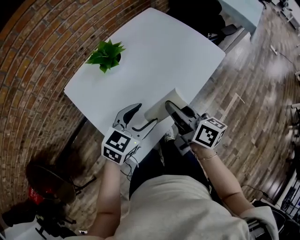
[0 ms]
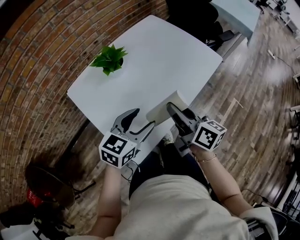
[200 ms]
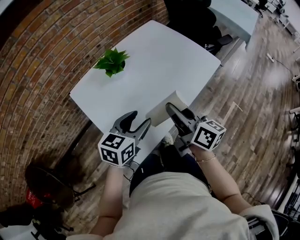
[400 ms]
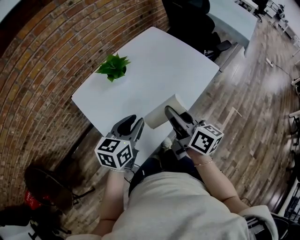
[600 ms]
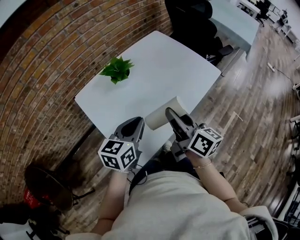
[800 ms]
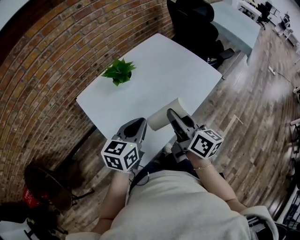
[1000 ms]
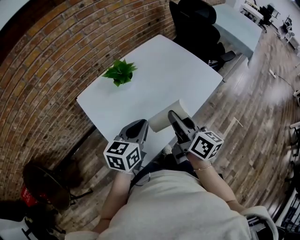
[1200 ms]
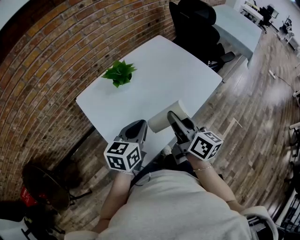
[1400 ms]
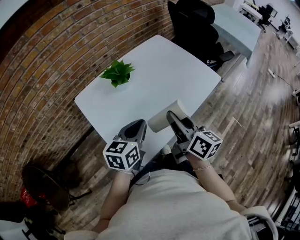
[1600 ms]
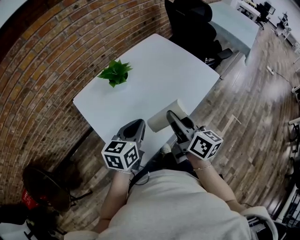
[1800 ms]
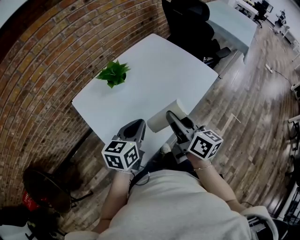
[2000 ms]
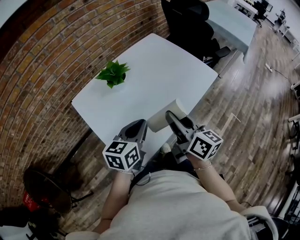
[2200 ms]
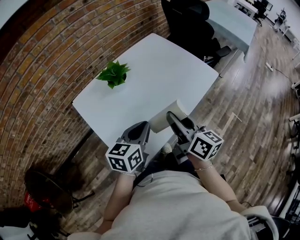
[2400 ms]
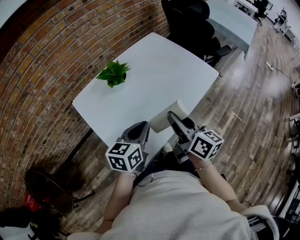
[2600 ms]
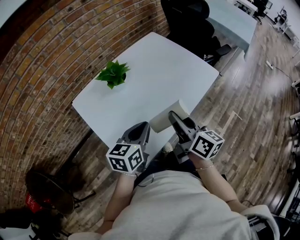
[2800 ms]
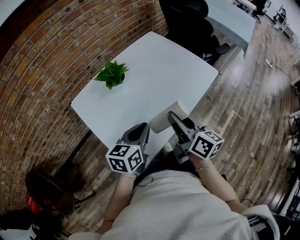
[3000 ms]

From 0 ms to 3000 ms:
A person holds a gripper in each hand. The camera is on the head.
From 0 ms to 1600 ms: The right gripper shifts about 5 cm upward. Meanwhile the left gripper moves some 5 cm, turns by approximately 30 degrees, and closes.
From 1600 ms to 3000 ms: The grippers move only a little.

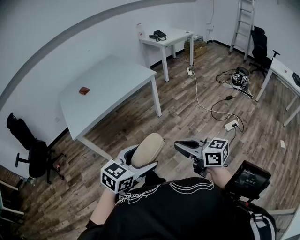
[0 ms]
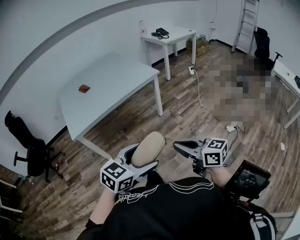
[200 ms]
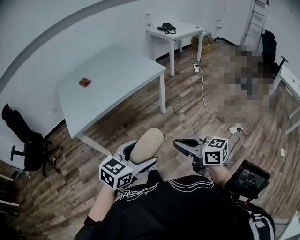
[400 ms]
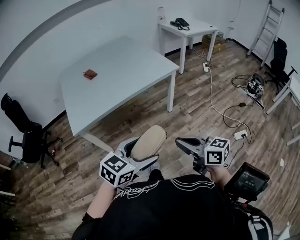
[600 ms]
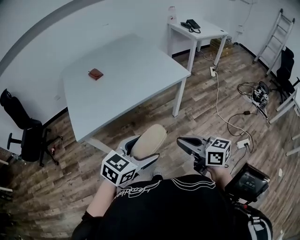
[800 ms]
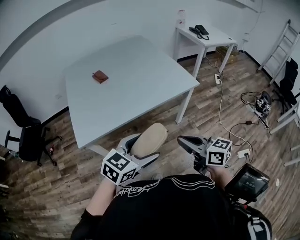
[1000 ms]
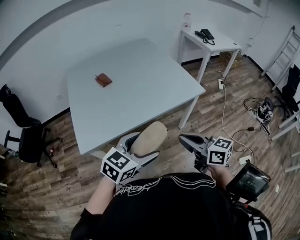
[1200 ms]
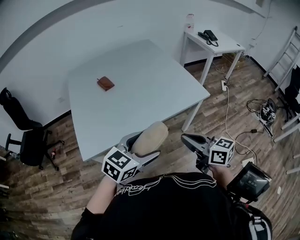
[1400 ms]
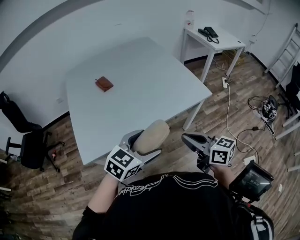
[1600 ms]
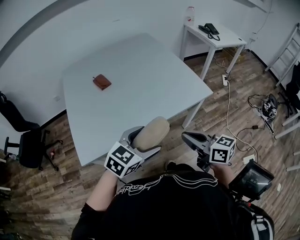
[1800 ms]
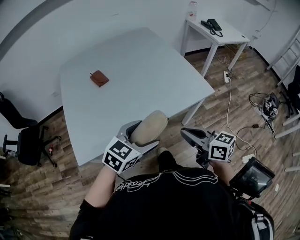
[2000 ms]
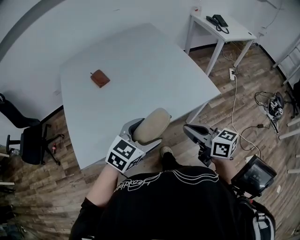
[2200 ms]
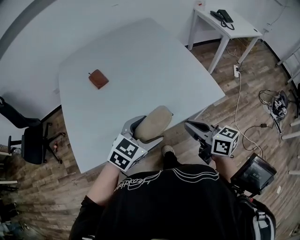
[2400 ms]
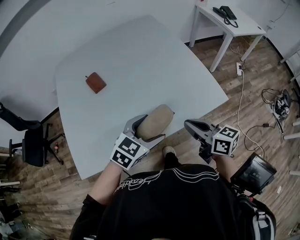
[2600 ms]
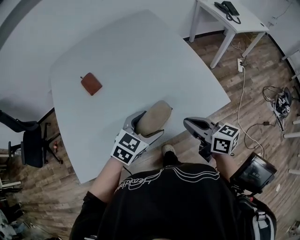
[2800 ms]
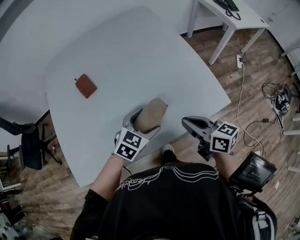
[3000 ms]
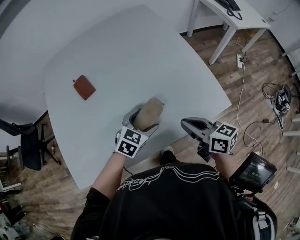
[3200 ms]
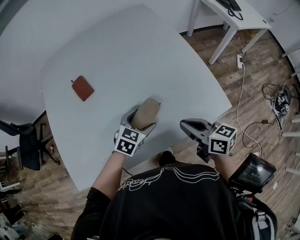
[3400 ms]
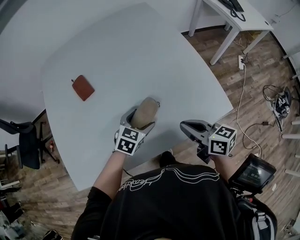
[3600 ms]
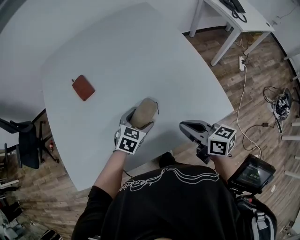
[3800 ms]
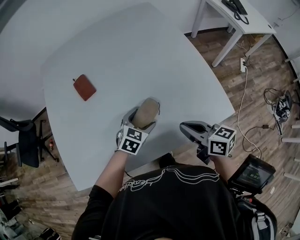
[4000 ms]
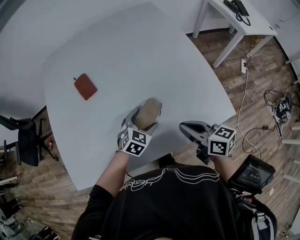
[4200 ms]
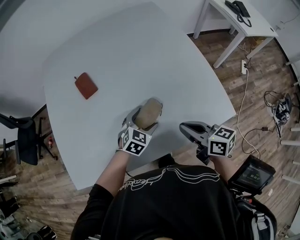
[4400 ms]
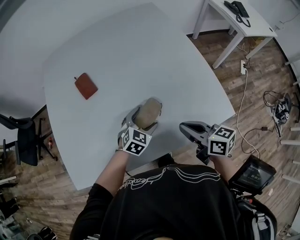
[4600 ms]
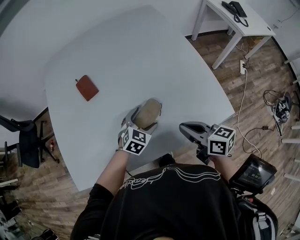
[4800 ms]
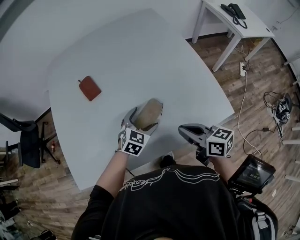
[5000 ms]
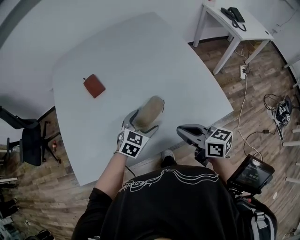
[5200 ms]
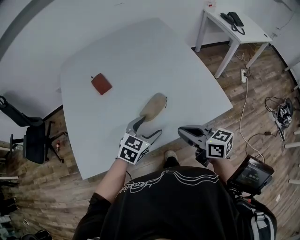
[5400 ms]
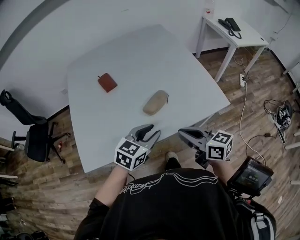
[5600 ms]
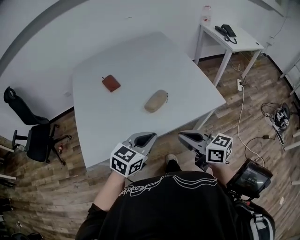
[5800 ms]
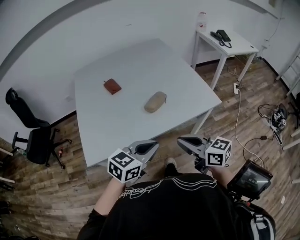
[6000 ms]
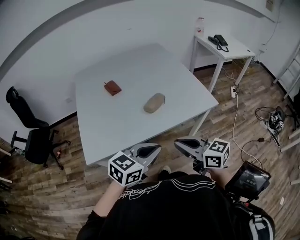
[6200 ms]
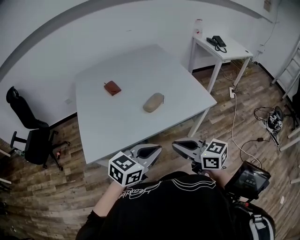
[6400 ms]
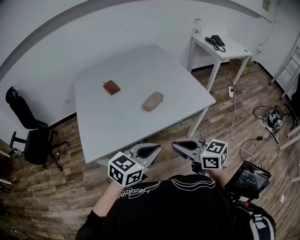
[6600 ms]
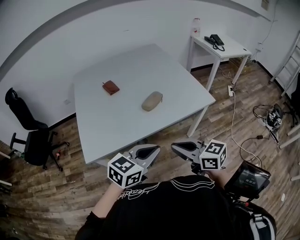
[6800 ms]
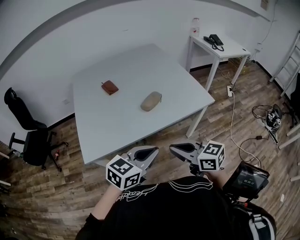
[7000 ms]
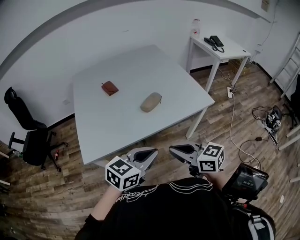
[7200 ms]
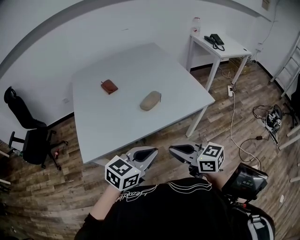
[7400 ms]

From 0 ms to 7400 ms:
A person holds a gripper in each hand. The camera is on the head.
From 0 ms to 1400 ms: The pair of grippers is taken forward and to the left, approximately 50 cm.
From 1400 ms to 3000 ms: The left gripper shifts approximately 35 cm forward and downward. The right gripper shifts roughly 30 cm forward.
From 3000 ms to 4400 ms: The left gripper shifts about 10 cm downward and forward.
From 4400 ms to 6000 ms: The right gripper shifts approximately 30 cm backward, upward and to the left, while the left gripper moves backward and upward, roughly 40 cm, rotates roughly 30 degrees, and closes its fingers.
From 6000 ms to 7400 ms: The grippers both shift backward by roughly 5 cm.

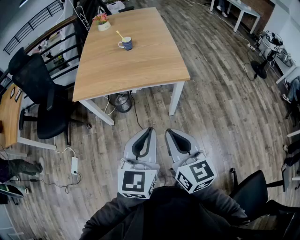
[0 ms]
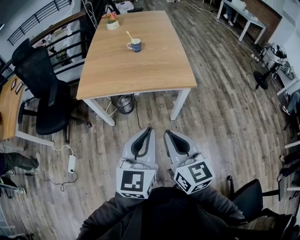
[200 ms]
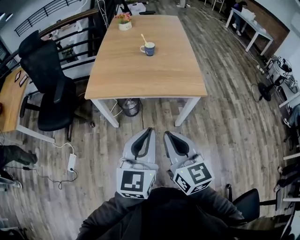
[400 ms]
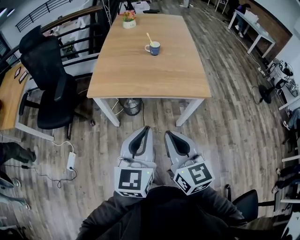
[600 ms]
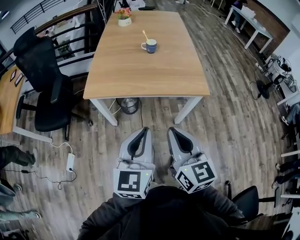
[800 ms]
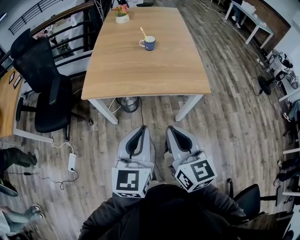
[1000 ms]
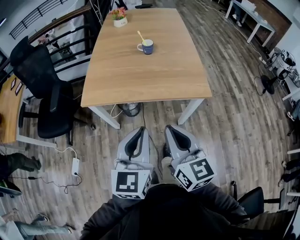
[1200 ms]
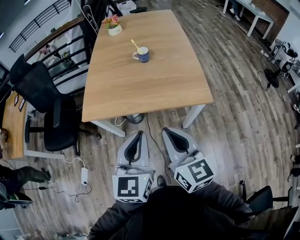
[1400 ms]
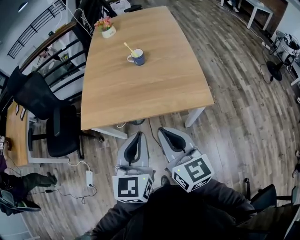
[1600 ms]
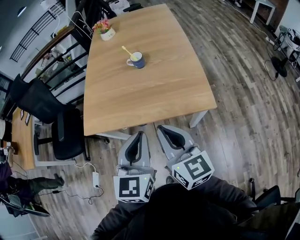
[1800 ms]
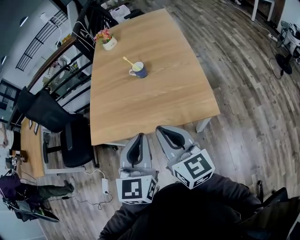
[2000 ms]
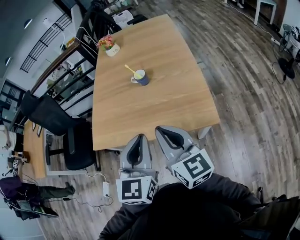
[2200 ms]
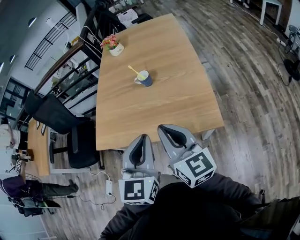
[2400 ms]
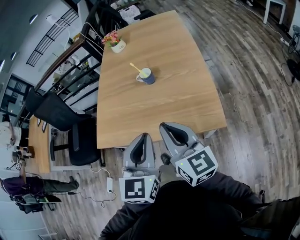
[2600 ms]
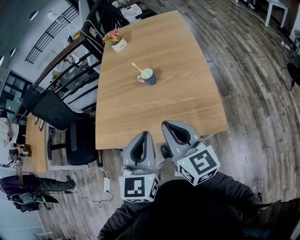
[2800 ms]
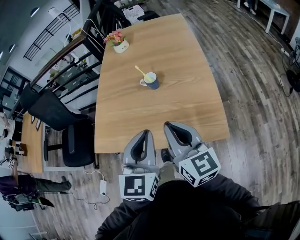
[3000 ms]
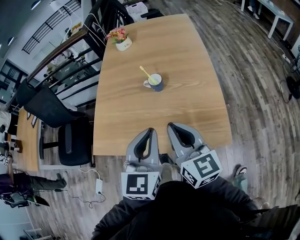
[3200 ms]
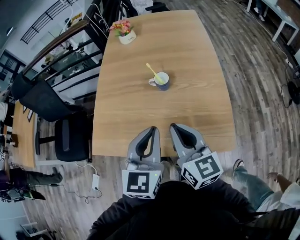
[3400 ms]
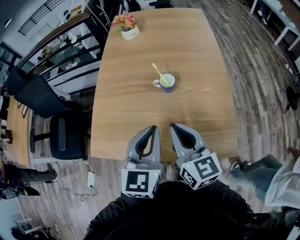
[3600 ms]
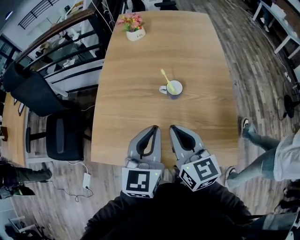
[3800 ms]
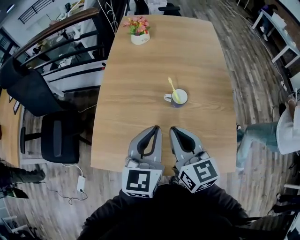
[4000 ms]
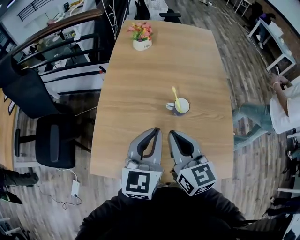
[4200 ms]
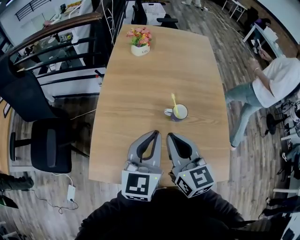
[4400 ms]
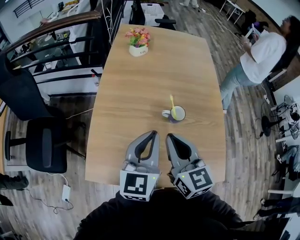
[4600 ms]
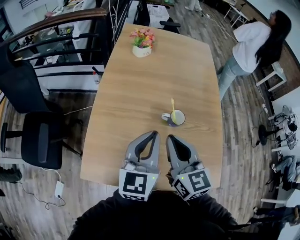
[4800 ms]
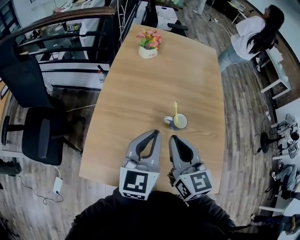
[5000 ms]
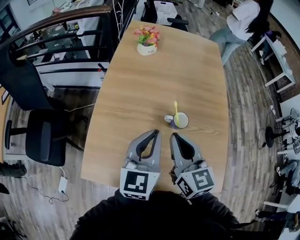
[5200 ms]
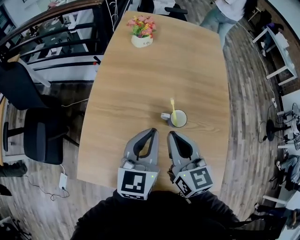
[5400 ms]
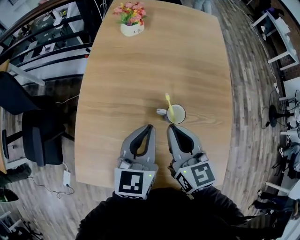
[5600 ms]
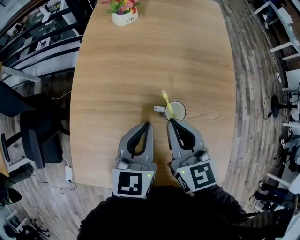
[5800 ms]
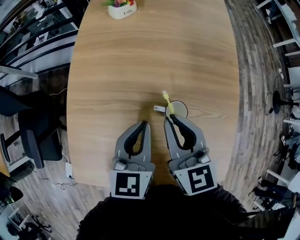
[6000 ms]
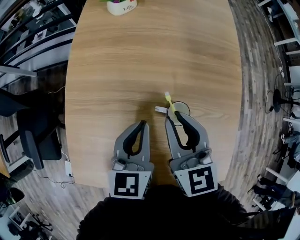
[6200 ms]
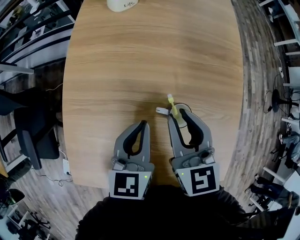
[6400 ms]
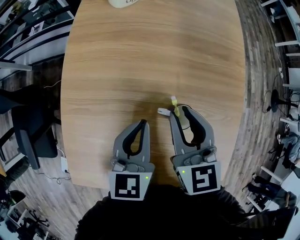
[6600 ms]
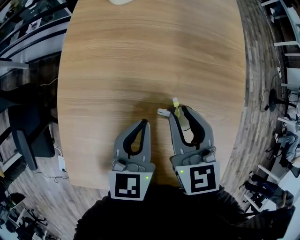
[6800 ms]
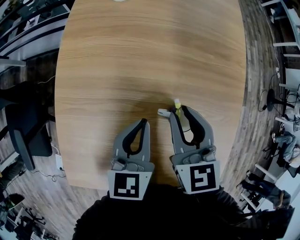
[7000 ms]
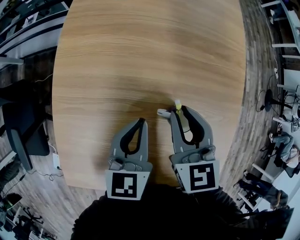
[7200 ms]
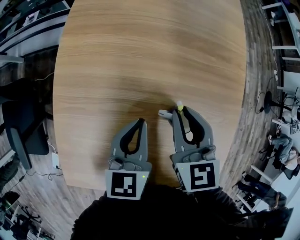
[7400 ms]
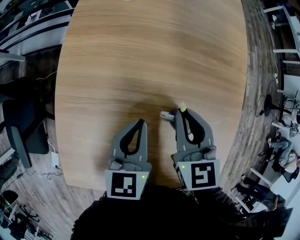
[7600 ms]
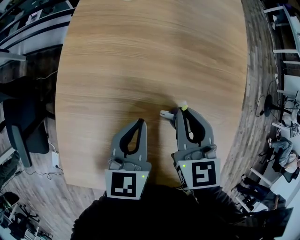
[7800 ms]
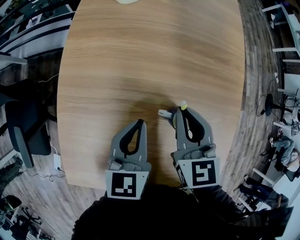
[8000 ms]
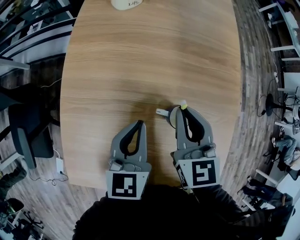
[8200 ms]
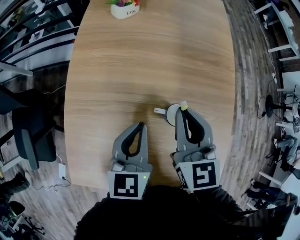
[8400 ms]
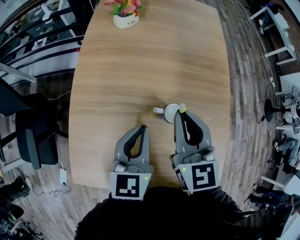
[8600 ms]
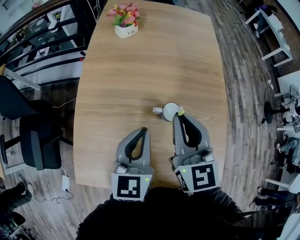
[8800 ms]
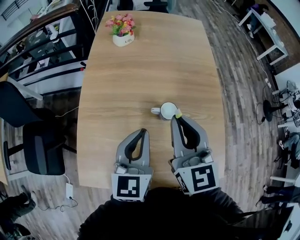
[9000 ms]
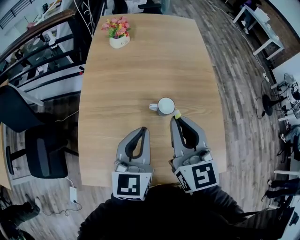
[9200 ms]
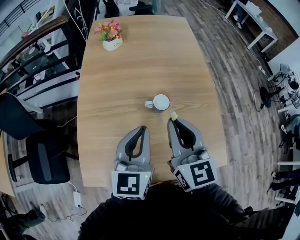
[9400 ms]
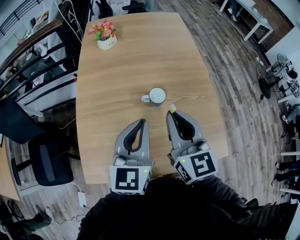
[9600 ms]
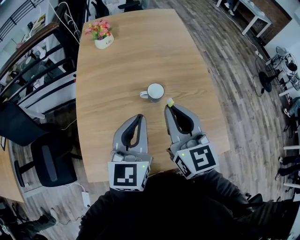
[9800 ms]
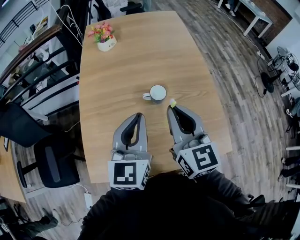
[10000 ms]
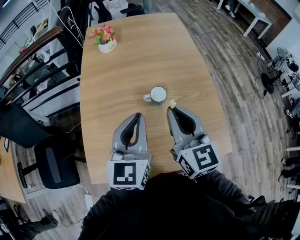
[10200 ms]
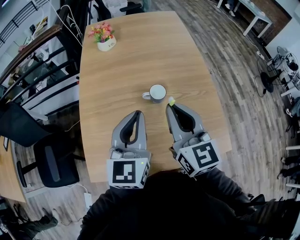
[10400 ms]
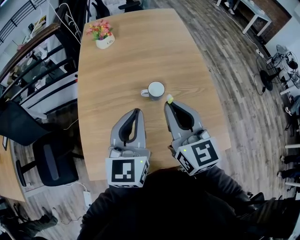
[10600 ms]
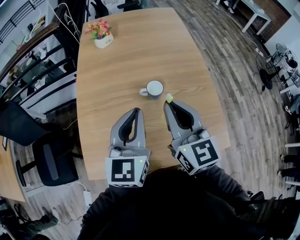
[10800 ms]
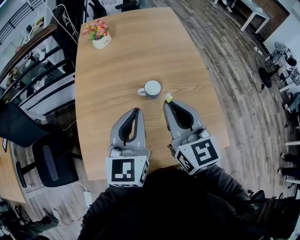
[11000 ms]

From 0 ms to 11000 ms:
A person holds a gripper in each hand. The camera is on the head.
From 0 ms to 1600 ms: The two grippers go some 25 cm forward.
From 1600 ms to 3200 ms: The grippers both shift forward by some 20 cm.
From 3200 ms to 4800 ms: Both grippers travel together forward and to the left, about 25 cm.
From 4800 ms to 6200 ms: The right gripper is displaced forward, downward and to the right by roughly 15 cm. The left gripper is displaced downward and forward by approximately 15 cm, and changes its angle by roughly 20 degrees.
From 6200 ms to 7800 ms: The right gripper is displaced downward by some 5 cm; the left gripper ends up approximately 5 cm from where it was.
From 7800 ms to 9400 ms: The left gripper is displaced upward and backward by some 20 cm, and changes its angle by roughly 20 degrees; the right gripper heads backward and upward, covering about 20 cm, and rotates about 30 degrees.
From 9400 ms to 11000 ms: The grippers make only small movements.

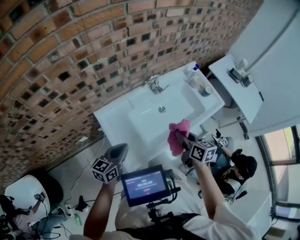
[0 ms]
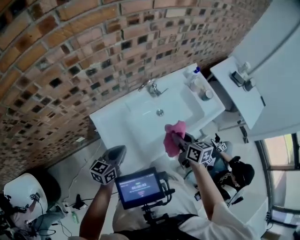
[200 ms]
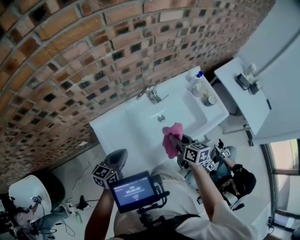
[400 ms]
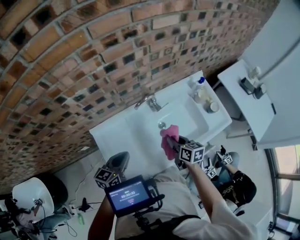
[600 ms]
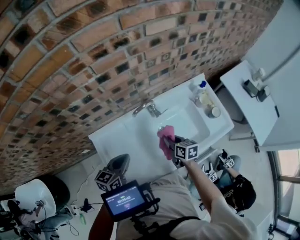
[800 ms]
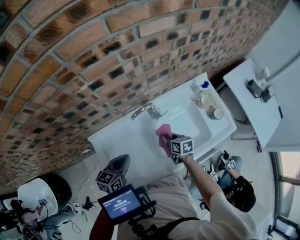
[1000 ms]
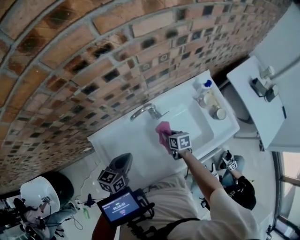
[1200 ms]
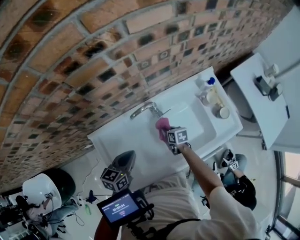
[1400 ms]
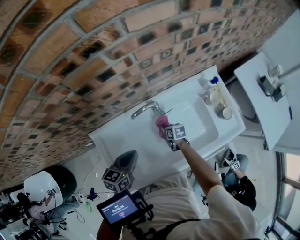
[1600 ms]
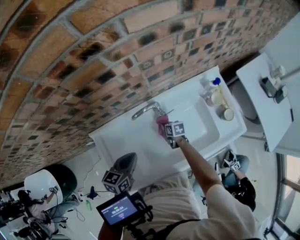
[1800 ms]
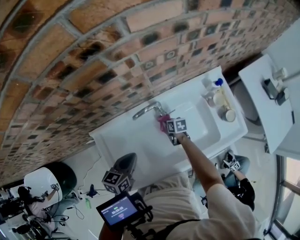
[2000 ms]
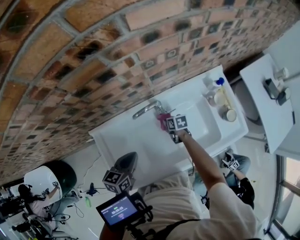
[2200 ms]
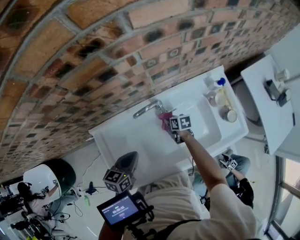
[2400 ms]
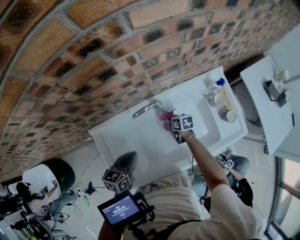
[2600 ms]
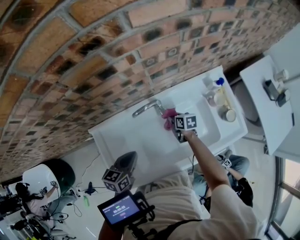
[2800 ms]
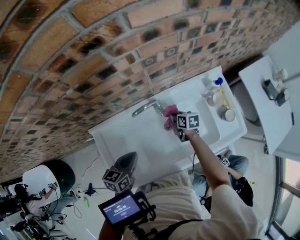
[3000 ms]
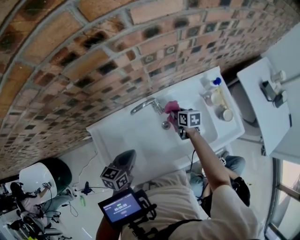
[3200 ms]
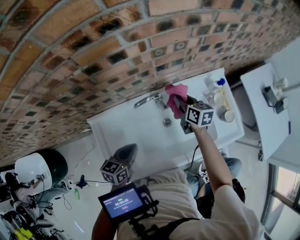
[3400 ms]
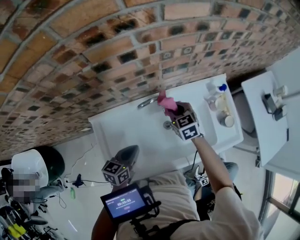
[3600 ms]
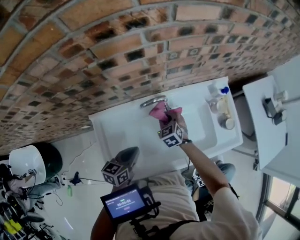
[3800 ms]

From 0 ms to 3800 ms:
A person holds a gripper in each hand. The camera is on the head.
From 0 ms to 1200 ms: The right gripper travels downward and forward by about 35 cm, and swivels roughly 20 degrees; the left gripper is displaced forward and to the right by some 25 cm.
From 1200 ms to 2600 ms: The right gripper goes about 10 cm forward and downward.
From 2600 ms to 3800 ms: The right gripper shifts about 10 cm upward and to the left, and rotates around the line of its fingers by some 50 degrees, counterclockwise from behind.
